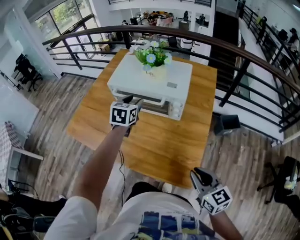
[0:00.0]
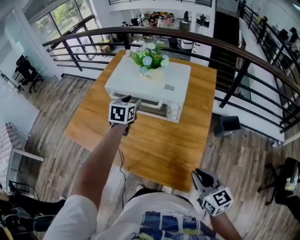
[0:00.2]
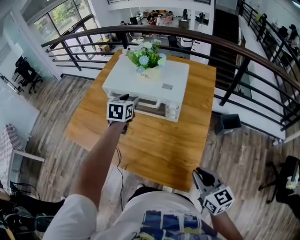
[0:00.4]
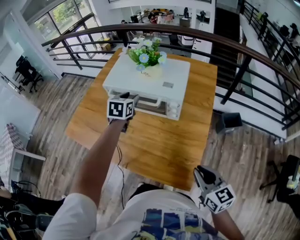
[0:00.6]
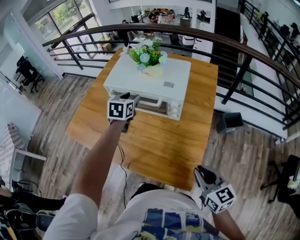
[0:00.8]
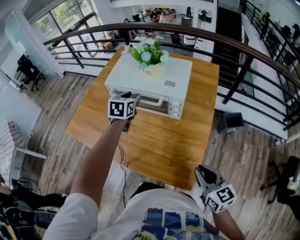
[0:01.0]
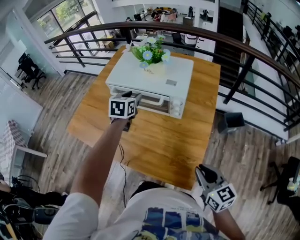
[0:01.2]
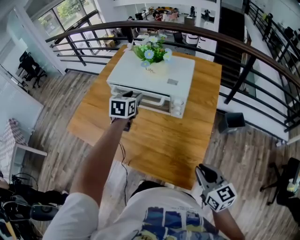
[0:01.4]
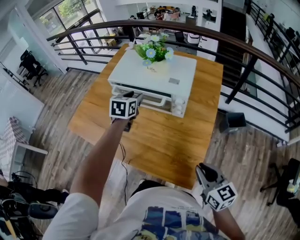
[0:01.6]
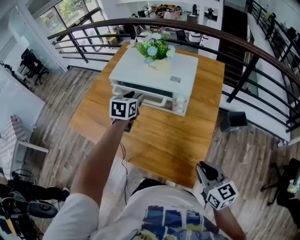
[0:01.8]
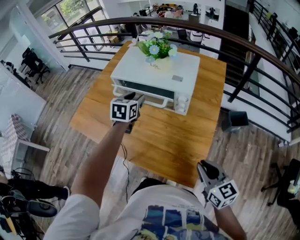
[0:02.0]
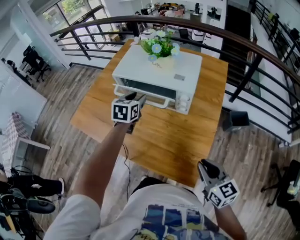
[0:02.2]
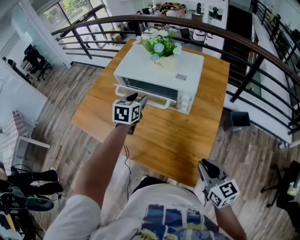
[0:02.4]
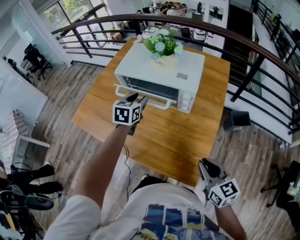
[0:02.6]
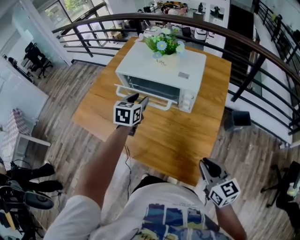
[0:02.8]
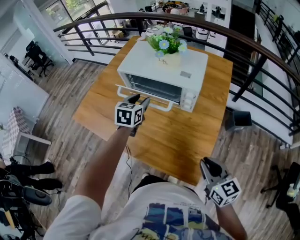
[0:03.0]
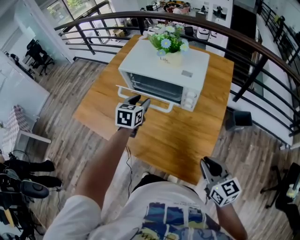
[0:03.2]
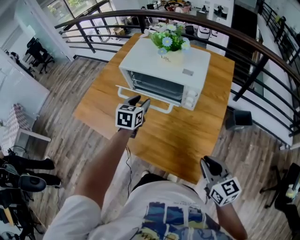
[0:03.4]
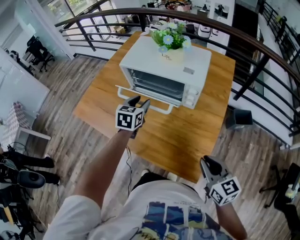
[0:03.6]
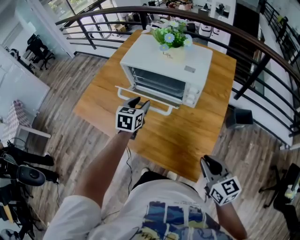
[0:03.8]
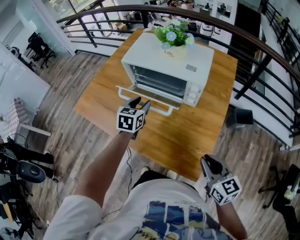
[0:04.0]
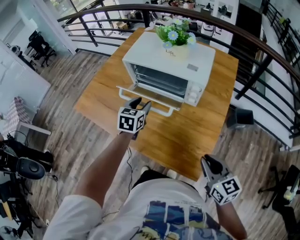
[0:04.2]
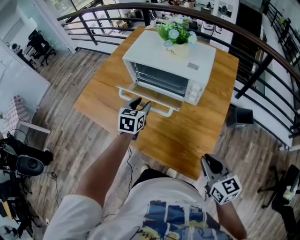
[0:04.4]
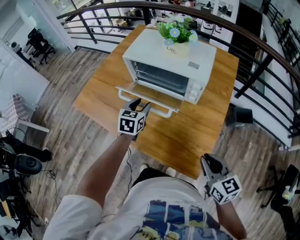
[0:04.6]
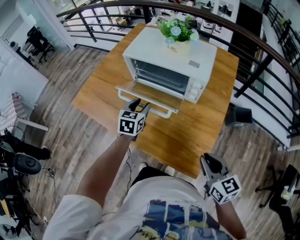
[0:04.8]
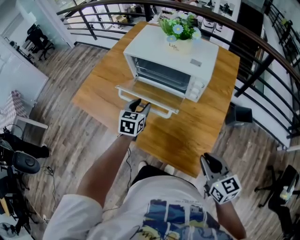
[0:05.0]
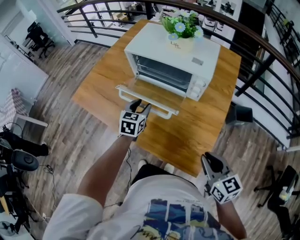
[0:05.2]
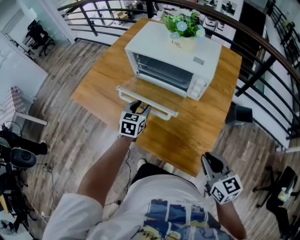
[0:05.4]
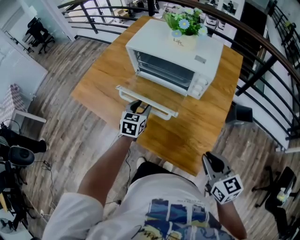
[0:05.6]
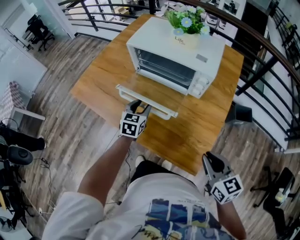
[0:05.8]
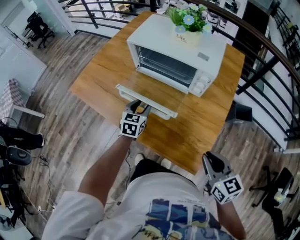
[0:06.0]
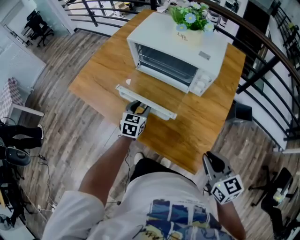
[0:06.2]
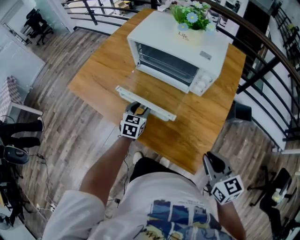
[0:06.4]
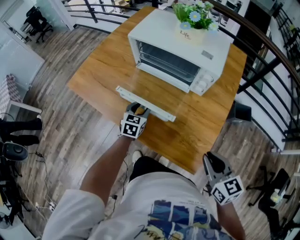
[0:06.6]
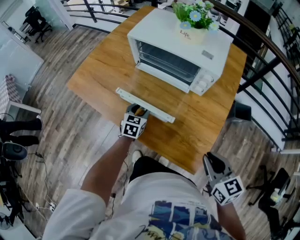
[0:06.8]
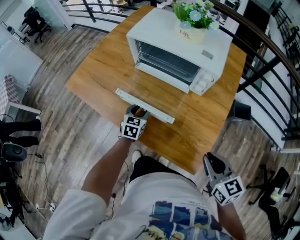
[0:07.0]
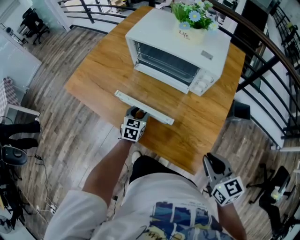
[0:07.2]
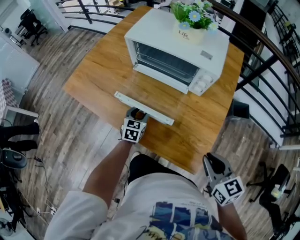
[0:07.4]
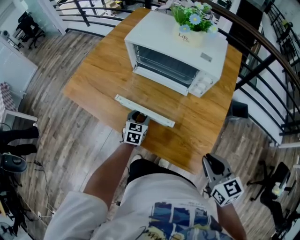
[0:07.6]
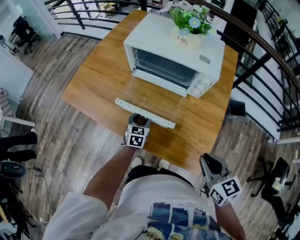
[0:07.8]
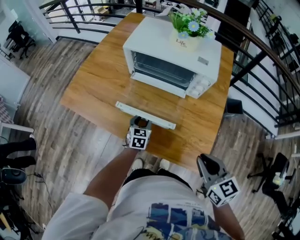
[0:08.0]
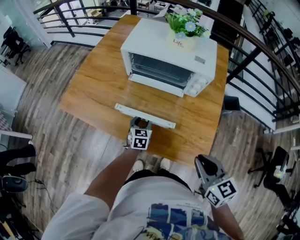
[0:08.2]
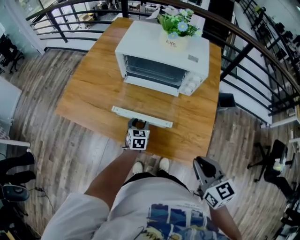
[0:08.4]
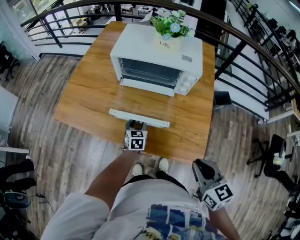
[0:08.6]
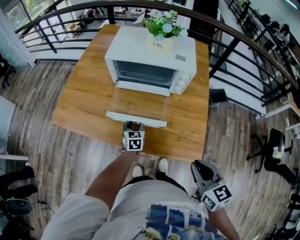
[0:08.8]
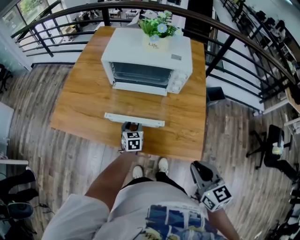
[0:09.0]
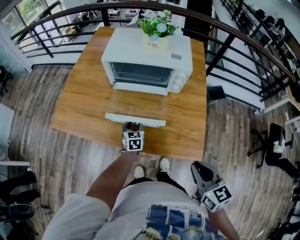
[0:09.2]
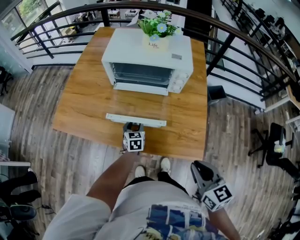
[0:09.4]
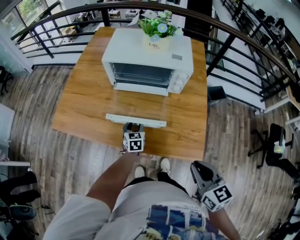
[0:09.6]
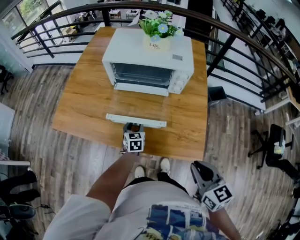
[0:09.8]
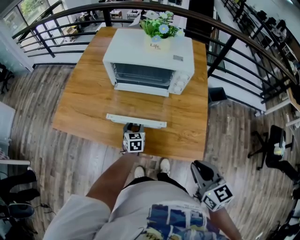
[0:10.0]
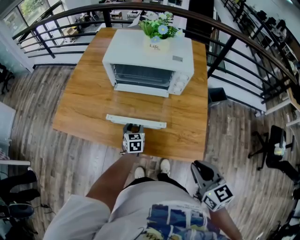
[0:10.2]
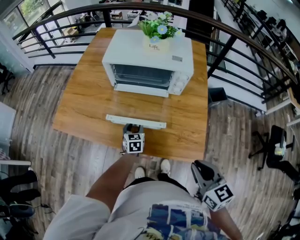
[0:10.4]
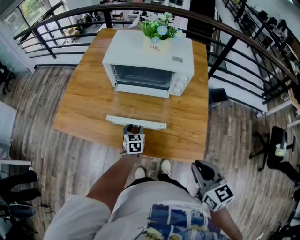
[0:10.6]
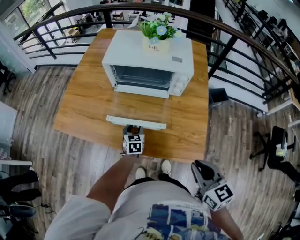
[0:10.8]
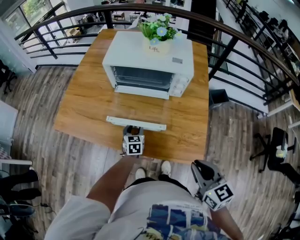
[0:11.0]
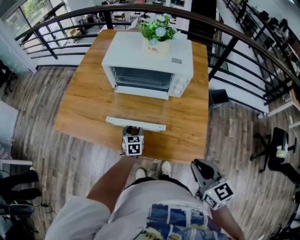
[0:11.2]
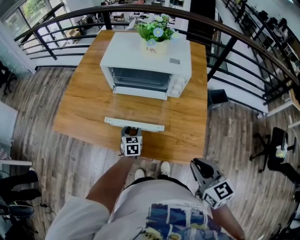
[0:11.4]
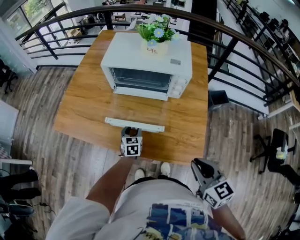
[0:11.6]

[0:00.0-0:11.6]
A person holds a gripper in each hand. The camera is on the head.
0:00.0 to 0:01.4: The grippers move only a little.
0:01.4 to 0:02.8: The left gripper shifts by approximately 5 cm.
0:02.8 to 0:04.4: The left gripper moves backward and downward, about 10 cm.
0:04.4 to 0:05.8: The left gripper heads downward, covering approximately 5 cm.
0:05.8 to 0:07.2: The left gripper moves downward, approximately 10 cm.
0:07.2 to 0:08.8: The right gripper heads to the left and backward, covering some 10 cm.
0:08.8 to 0:10.2: Both grippers stay put.
0:10.2 to 0:11.6: The grippers stay close to where they were, moving slightly.

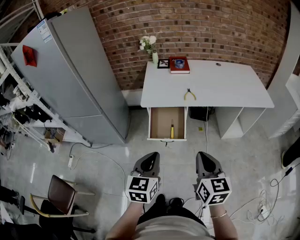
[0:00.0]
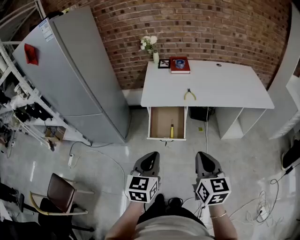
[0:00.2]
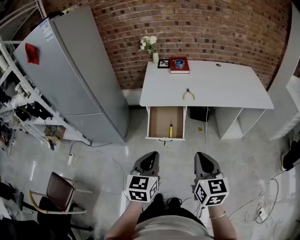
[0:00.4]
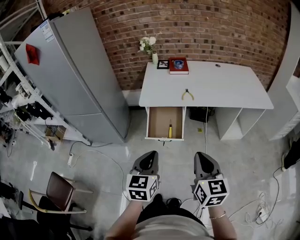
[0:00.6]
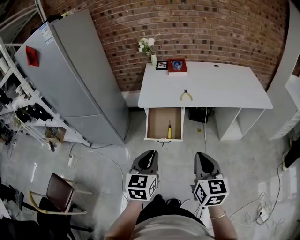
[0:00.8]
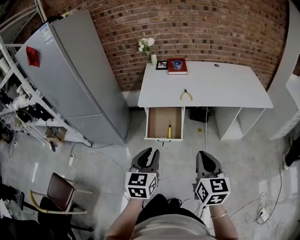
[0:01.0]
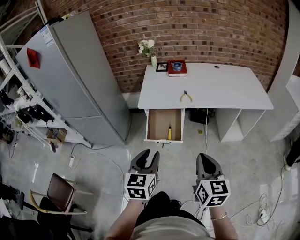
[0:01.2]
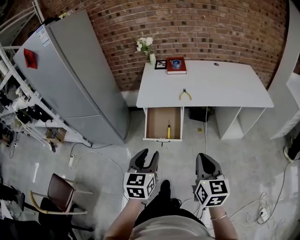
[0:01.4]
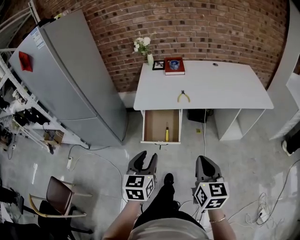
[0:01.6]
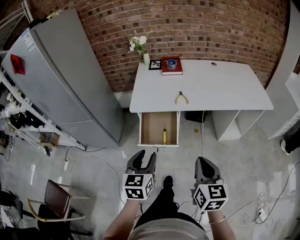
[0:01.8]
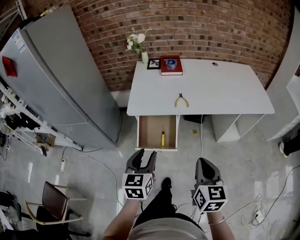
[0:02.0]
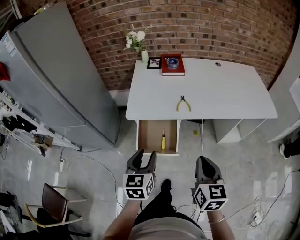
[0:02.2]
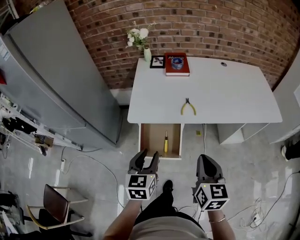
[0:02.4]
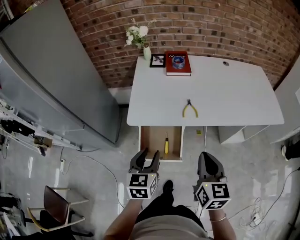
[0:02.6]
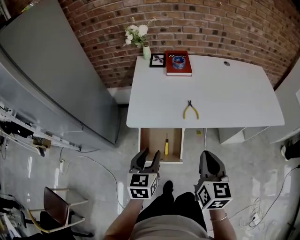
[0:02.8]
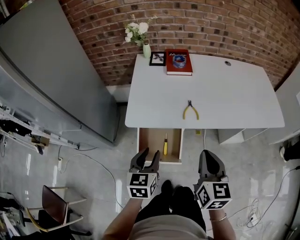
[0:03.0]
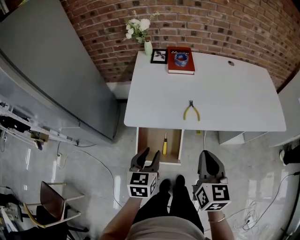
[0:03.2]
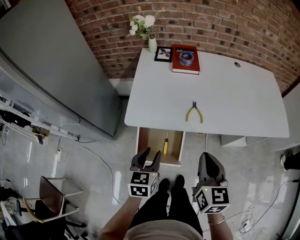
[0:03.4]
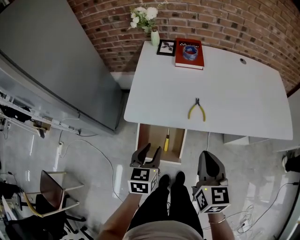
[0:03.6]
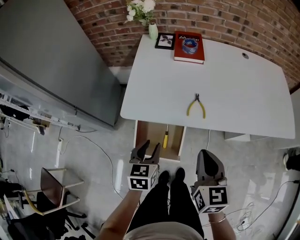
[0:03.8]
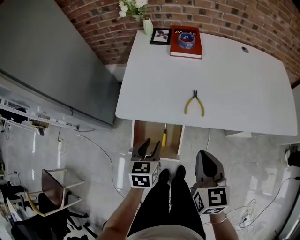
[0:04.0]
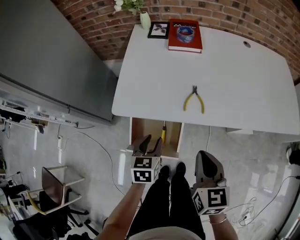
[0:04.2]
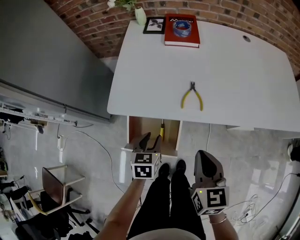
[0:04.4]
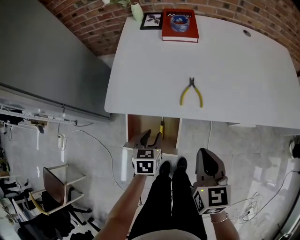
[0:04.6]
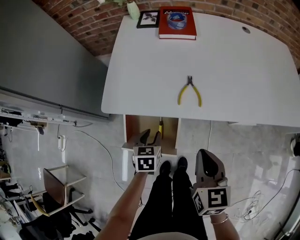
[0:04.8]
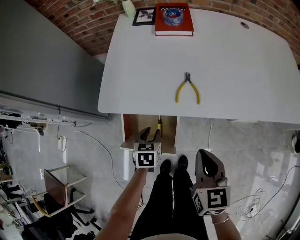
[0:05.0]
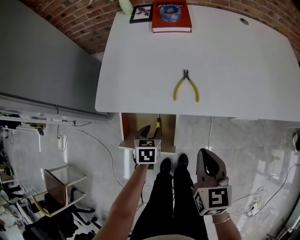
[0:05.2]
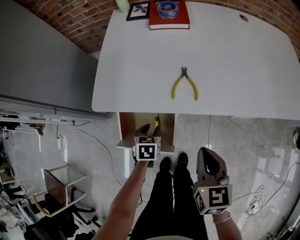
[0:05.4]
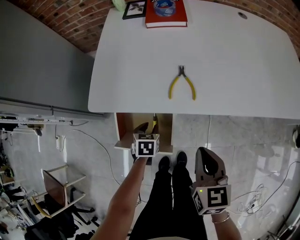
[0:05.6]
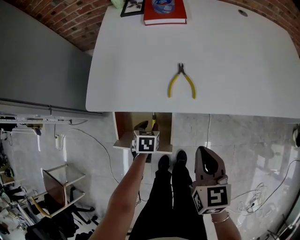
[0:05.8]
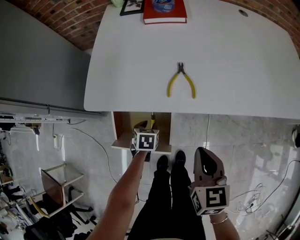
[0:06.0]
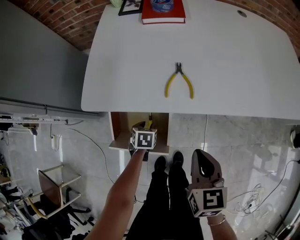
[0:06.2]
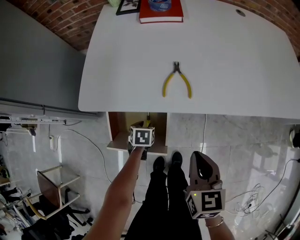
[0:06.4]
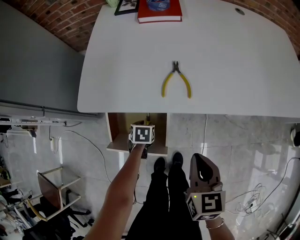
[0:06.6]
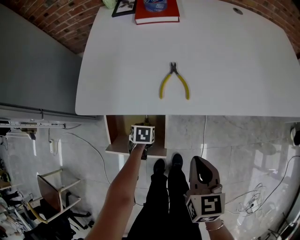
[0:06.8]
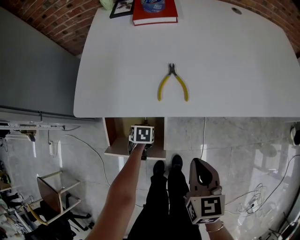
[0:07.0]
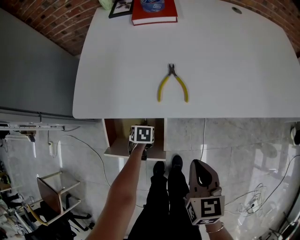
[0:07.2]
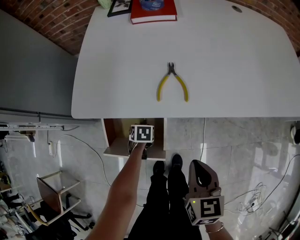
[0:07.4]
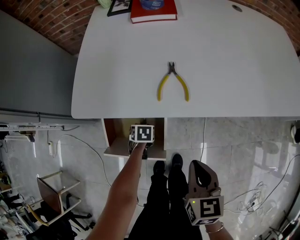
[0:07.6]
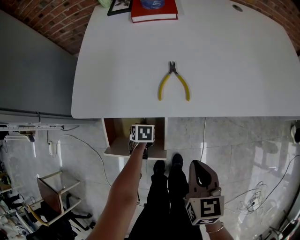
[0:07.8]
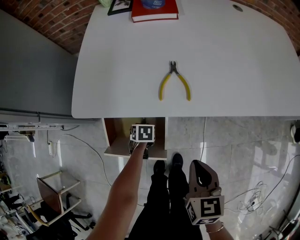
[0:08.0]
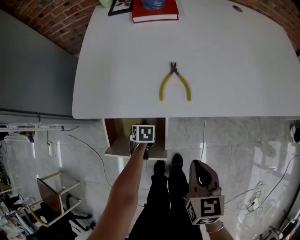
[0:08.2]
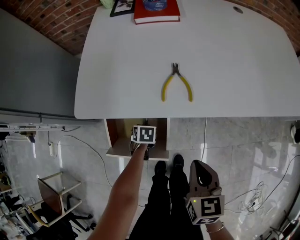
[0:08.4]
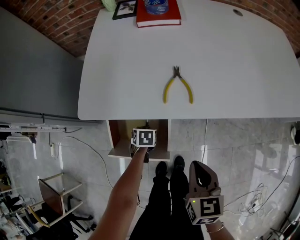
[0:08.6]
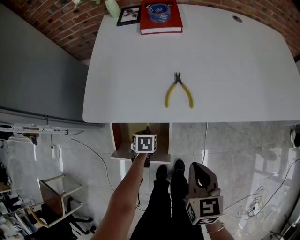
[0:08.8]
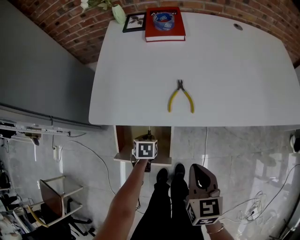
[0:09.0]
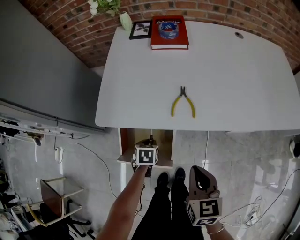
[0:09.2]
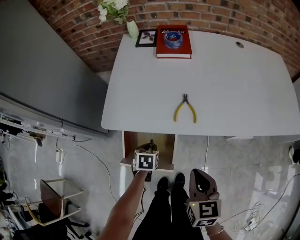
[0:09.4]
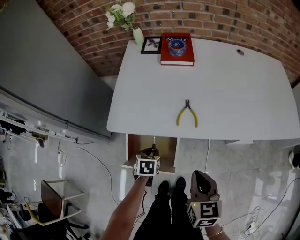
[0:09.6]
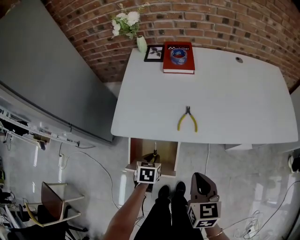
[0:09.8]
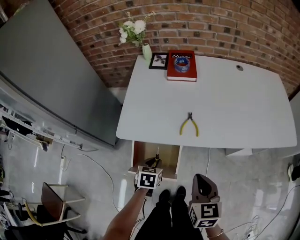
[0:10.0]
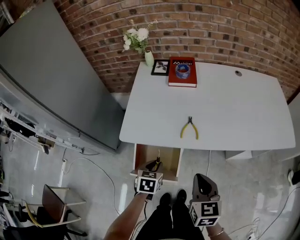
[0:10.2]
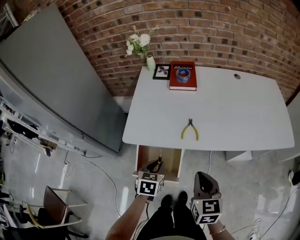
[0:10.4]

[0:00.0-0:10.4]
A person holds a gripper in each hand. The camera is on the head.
0:00.0 to 0:01.4: The left gripper opens its fingers.
0:01.4 to 0:03.0: Both grippers travel together forward, approximately 25 cm.
0:03.0 to 0:04.4: The left gripper travels downward and forward by roughly 15 cm, while the right gripper is displaced downward by approximately 10 cm.
0:04.4 to 0:06.0: The right gripper shifts approximately 10 cm downward. The left gripper travels downward by about 20 cm, and swivels roughly 20 degrees.
0:06.0 to 0:07.4: The left gripper moves downward, approximately 5 cm.
0:07.4 to 0:09.0: The left gripper shifts about 5 cm upward.
0:09.0 to 0:10.4: The right gripper is displaced upward by approximately 10 cm, while the left gripper travels upward by about 25 cm, and turns by roughly 20 degrees.

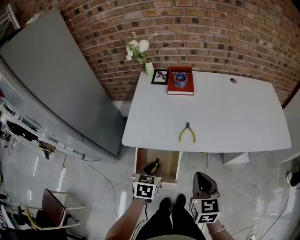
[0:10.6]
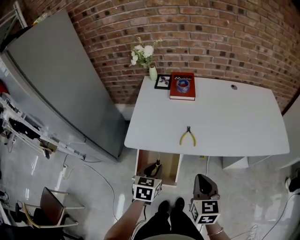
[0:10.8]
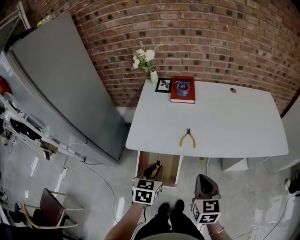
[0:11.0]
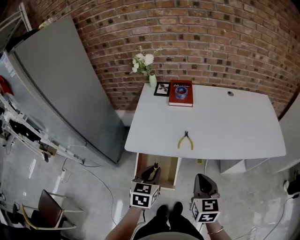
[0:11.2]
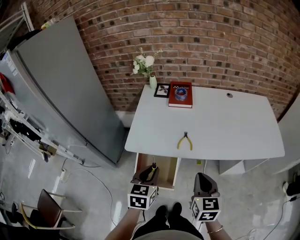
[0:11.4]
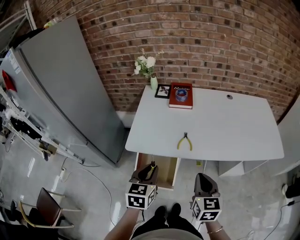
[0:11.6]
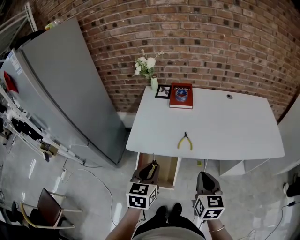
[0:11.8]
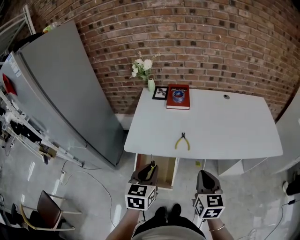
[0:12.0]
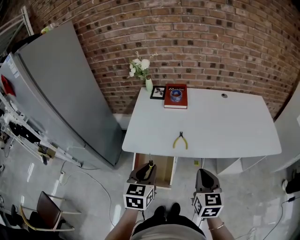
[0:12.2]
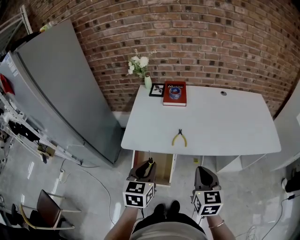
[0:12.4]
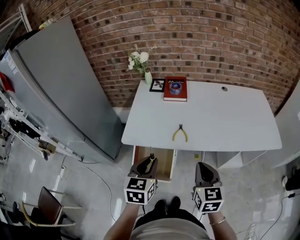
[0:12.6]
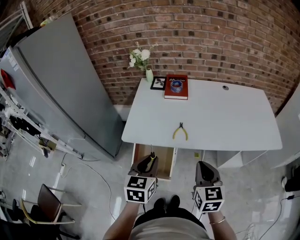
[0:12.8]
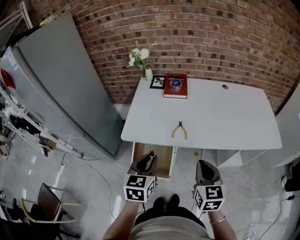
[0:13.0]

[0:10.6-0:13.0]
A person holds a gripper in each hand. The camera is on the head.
0:10.6 to 0:11.8: The right gripper ends up roughly 5 cm from where it was. The left gripper is displaced upward by about 15 cm.
0:11.8 to 0:13.0: The grippers make only small movements.
